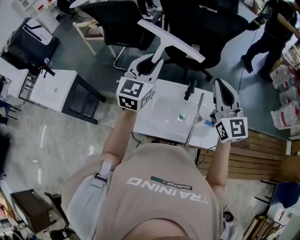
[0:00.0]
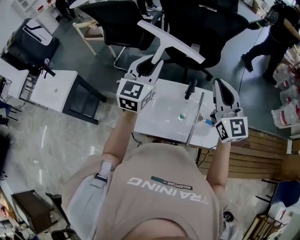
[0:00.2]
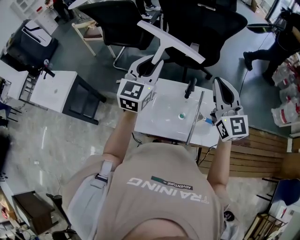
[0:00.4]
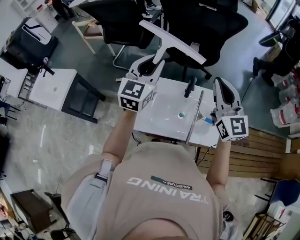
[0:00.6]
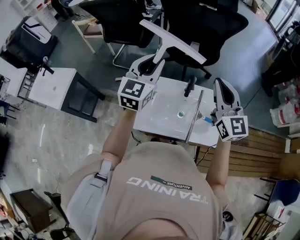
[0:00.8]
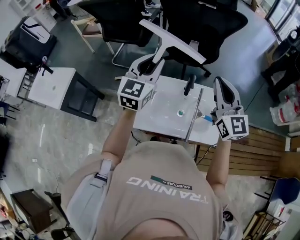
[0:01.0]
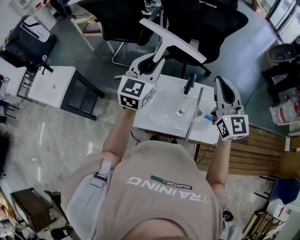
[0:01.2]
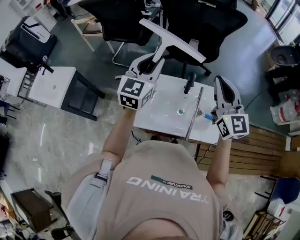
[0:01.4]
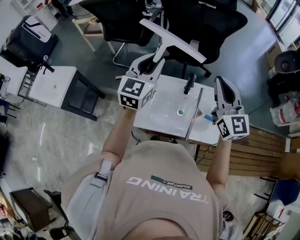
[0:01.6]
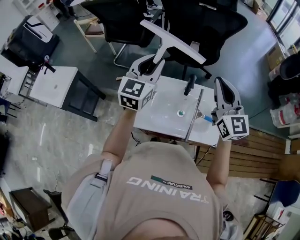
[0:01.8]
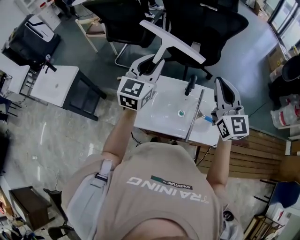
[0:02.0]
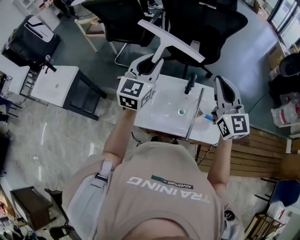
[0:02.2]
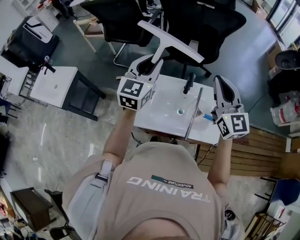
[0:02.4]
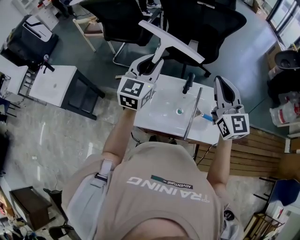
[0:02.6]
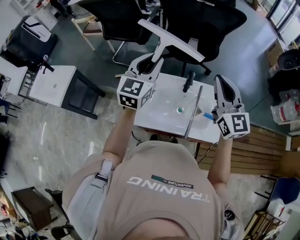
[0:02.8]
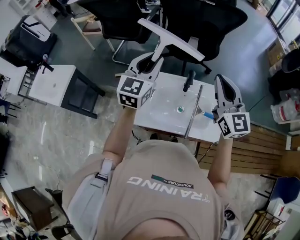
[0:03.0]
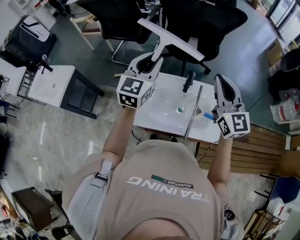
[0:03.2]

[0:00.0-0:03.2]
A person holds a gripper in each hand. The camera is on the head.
0:00.0 to 0:01.6: The grippers move only a little.
0:01.6 to 0:03.2: Neither gripper changes place.

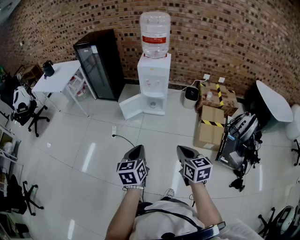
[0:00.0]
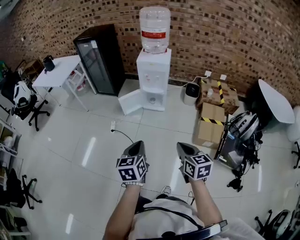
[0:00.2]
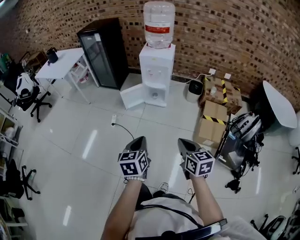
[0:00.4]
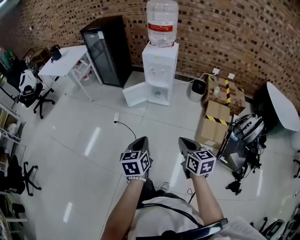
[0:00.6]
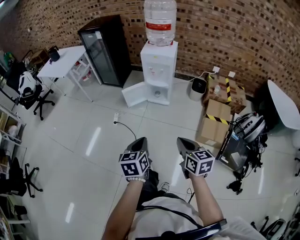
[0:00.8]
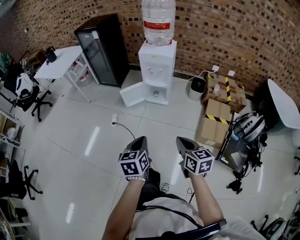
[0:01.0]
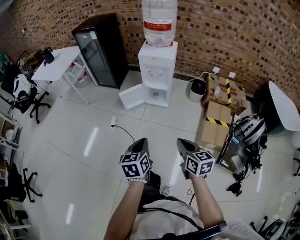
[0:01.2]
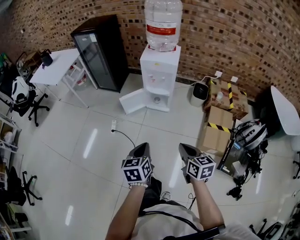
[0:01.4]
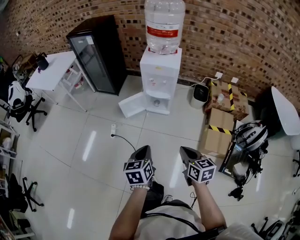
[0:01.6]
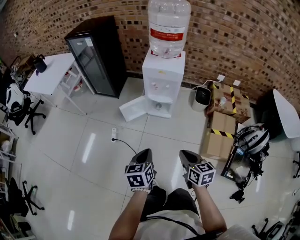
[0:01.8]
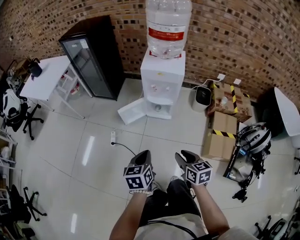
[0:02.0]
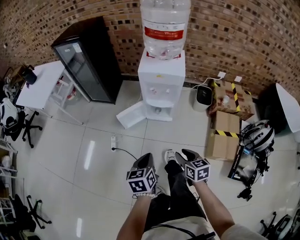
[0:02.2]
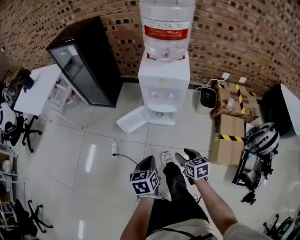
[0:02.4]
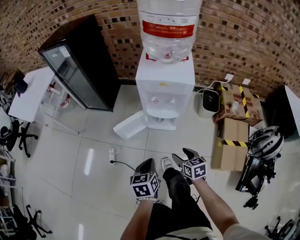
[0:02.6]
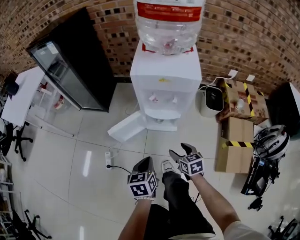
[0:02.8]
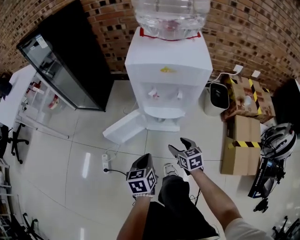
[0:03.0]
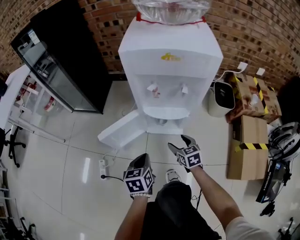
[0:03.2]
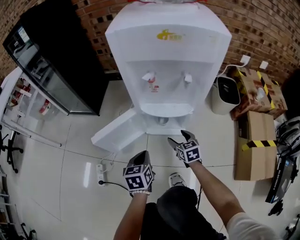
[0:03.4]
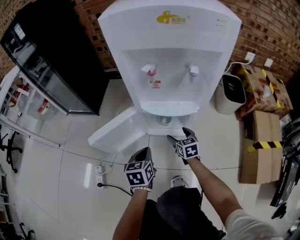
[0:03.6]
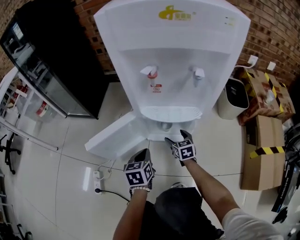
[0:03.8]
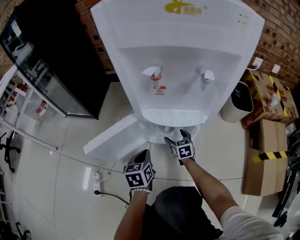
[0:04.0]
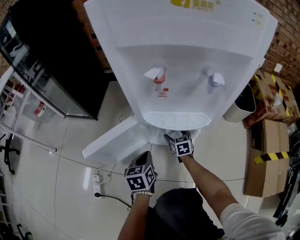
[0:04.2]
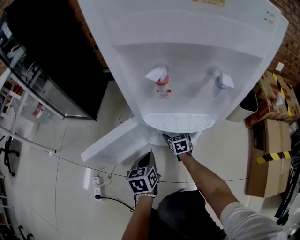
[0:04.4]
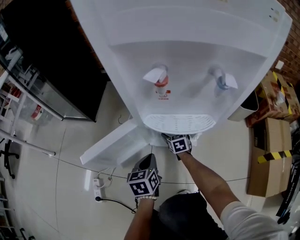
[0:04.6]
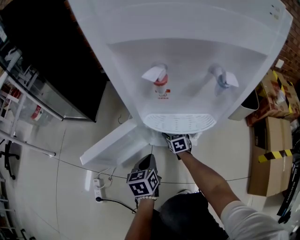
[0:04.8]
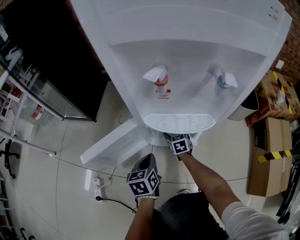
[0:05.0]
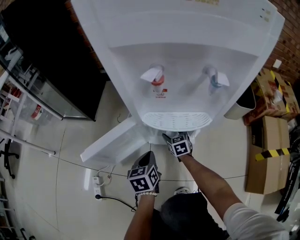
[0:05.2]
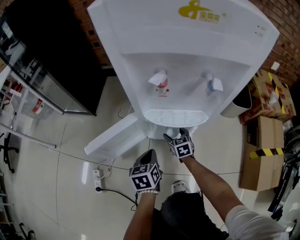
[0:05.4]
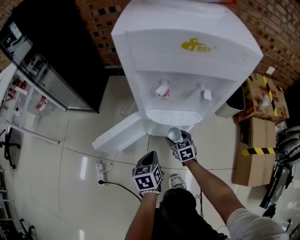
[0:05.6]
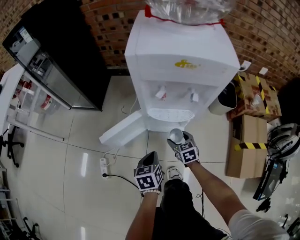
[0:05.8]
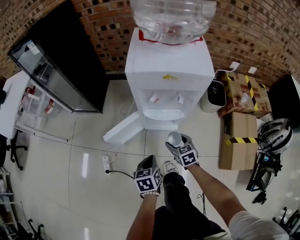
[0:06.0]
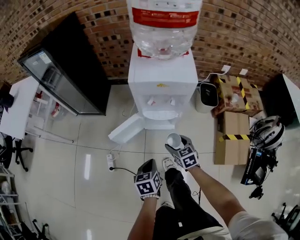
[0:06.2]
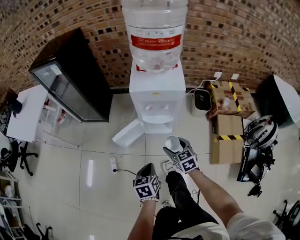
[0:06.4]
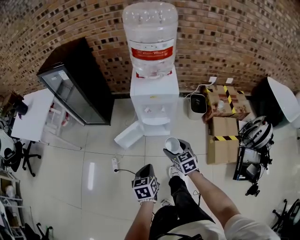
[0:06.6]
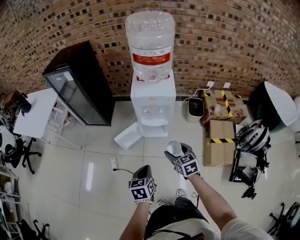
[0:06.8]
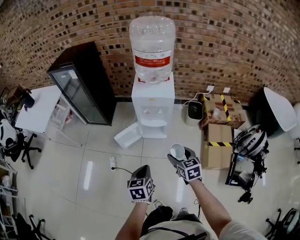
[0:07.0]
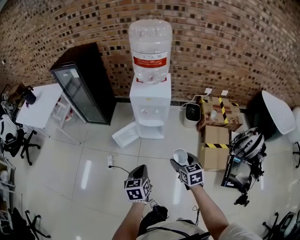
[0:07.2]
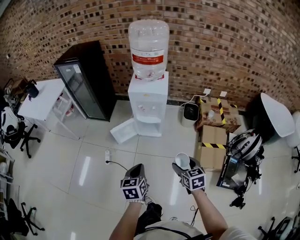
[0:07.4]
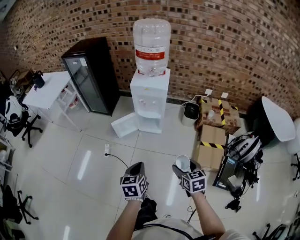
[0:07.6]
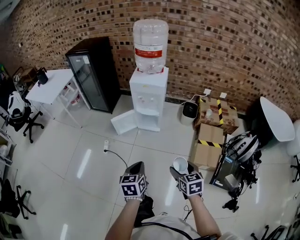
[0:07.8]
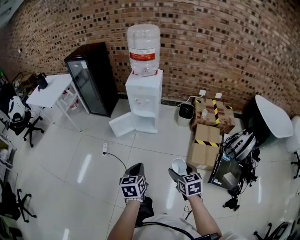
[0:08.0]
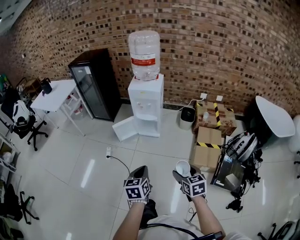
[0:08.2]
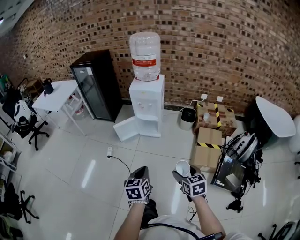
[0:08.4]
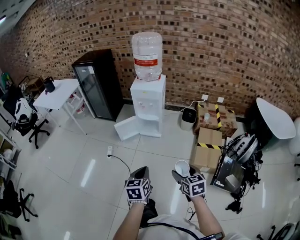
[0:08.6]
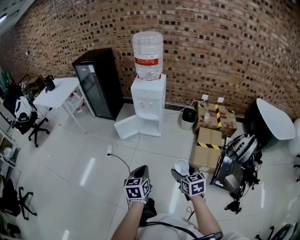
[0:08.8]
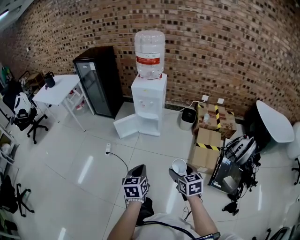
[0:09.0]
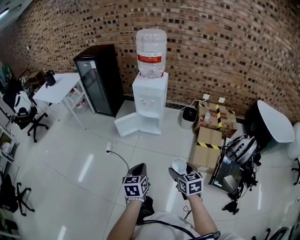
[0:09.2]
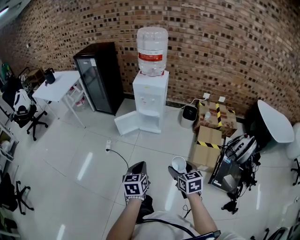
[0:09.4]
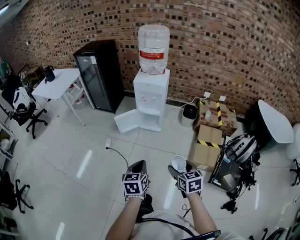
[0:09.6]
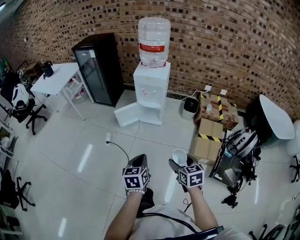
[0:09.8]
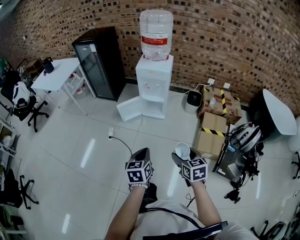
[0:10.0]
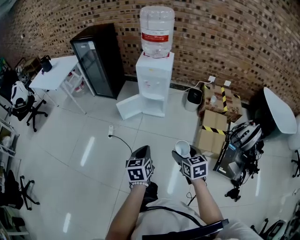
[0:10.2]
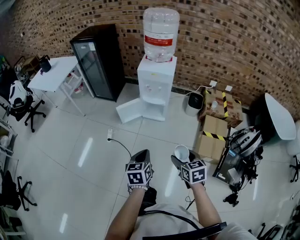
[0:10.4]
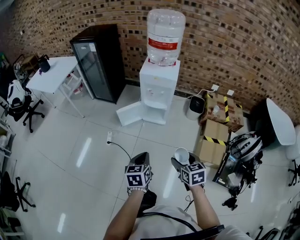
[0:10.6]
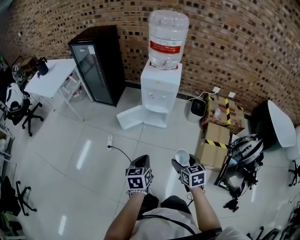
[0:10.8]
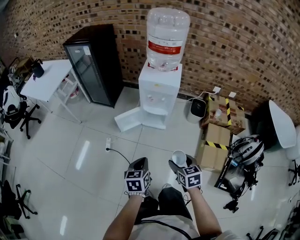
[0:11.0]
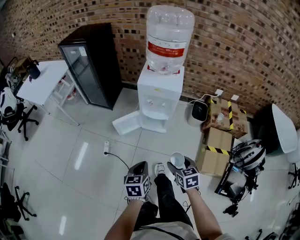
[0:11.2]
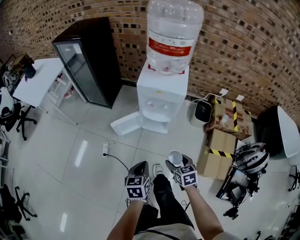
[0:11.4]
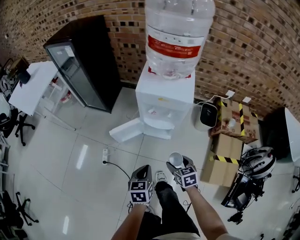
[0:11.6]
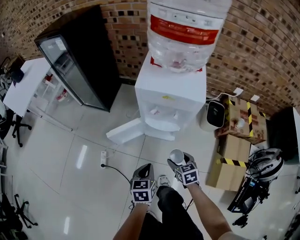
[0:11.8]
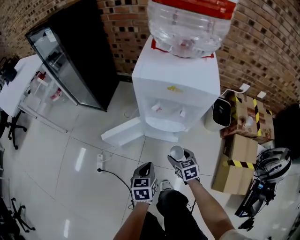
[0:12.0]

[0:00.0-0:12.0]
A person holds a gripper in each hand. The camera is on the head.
0:00.0 to 0:01.6: The grippers both shift forward and downward by roughly 20 cm.
0:01.6 to 0:03.0: Both grippers travel together downward and forward, some 50 cm. The right gripper opens.
0:03.0 to 0:04.4: The two grippers go approximately 35 cm downward and forward.
0:04.4 to 0:06.0: Both grippers move upward and backward, roughly 35 cm.
0:06.0 to 0:07.6: The left gripper travels upward and backward by roughly 50 cm. The right gripper heads backward and upward, covering some 60 cm.
0:07.6 to 0:09.0: Both grippers travel together backward, about 10 cm.
0:09.0 to 0:10.4: Both grippers travel together forward, roughly 10 cm.
0:10.4 to 0:12.0: The grippers both shift forward and downward by about 50 cm.

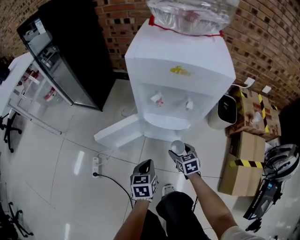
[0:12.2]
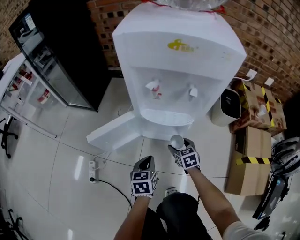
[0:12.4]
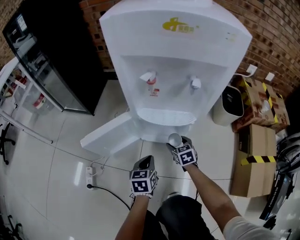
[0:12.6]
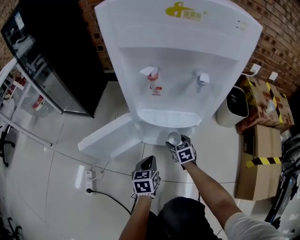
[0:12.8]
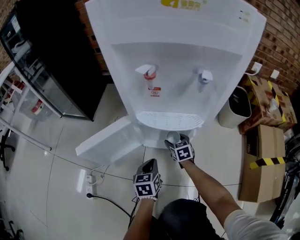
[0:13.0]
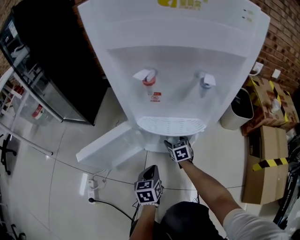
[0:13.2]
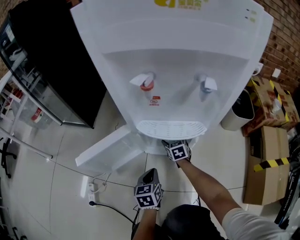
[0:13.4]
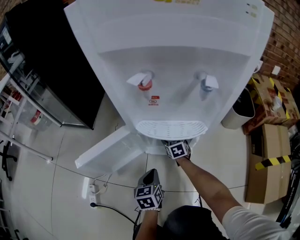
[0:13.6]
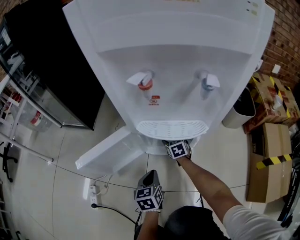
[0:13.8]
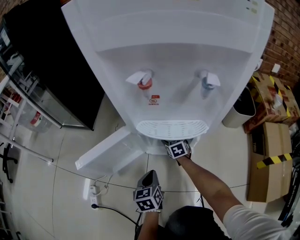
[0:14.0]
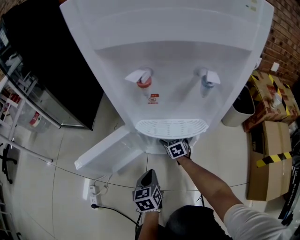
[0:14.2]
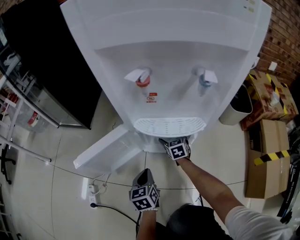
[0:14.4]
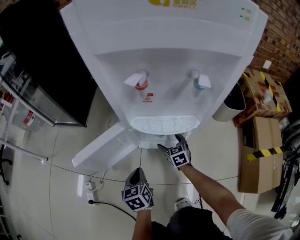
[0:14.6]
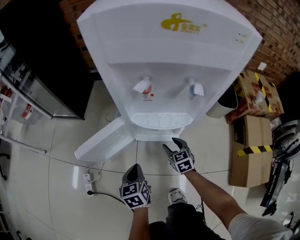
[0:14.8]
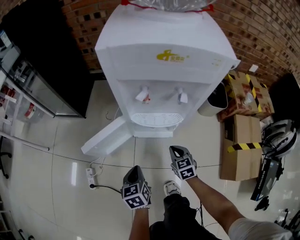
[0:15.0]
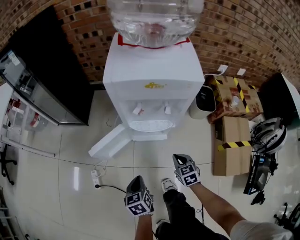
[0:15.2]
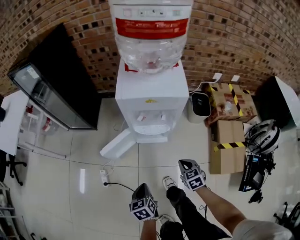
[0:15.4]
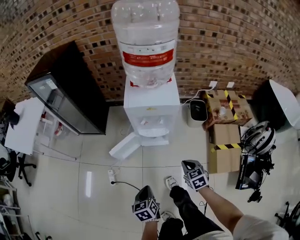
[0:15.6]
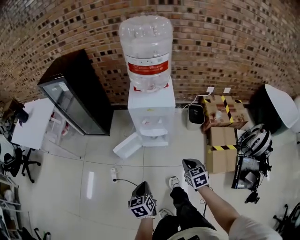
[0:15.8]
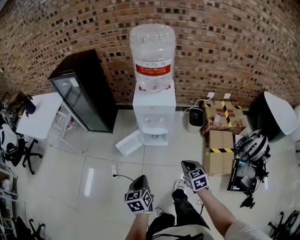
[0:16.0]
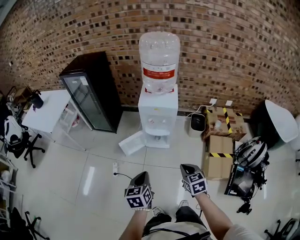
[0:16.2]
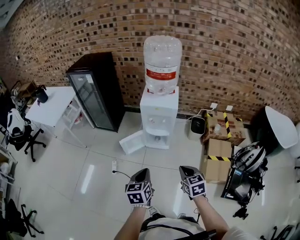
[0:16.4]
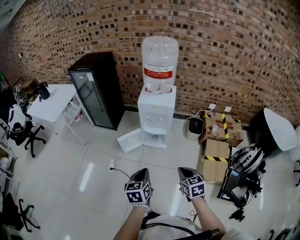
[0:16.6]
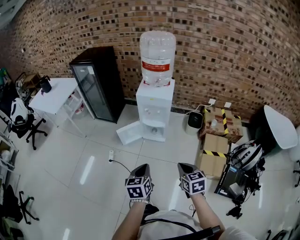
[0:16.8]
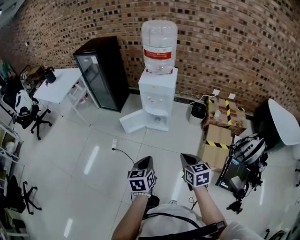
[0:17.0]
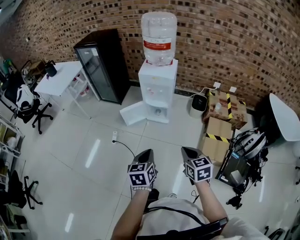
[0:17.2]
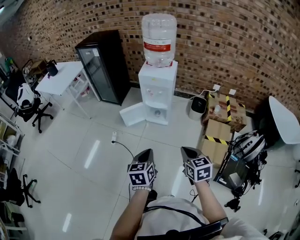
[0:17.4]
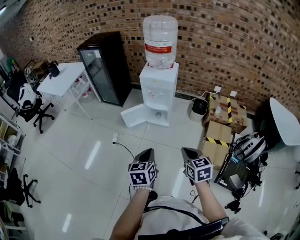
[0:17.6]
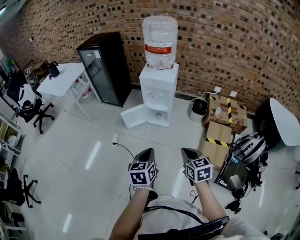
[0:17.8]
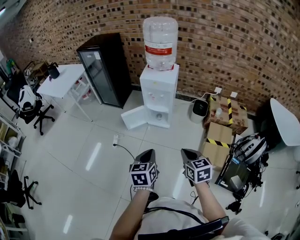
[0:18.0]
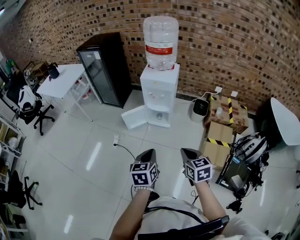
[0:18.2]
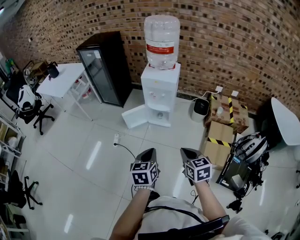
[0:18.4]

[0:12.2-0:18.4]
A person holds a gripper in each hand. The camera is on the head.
0:12.2 to 0:13.8: The two grippers go some 25 cm downward and forward.
0:13.8 to 0:15.4: Both grippers move upward and backward, about 50 cm. The right gripper closes up.
0:15.4 to 0:16.8: Both grippers move upward and backward, approximately 40 cm.

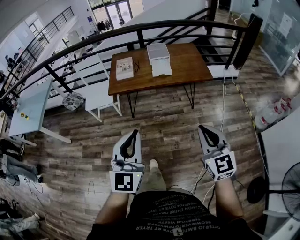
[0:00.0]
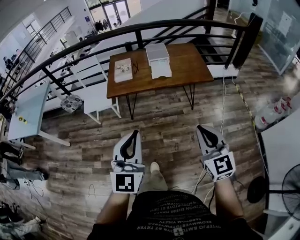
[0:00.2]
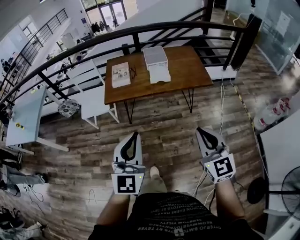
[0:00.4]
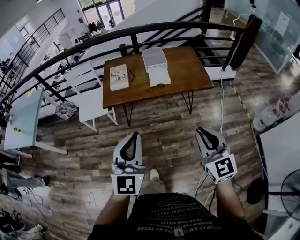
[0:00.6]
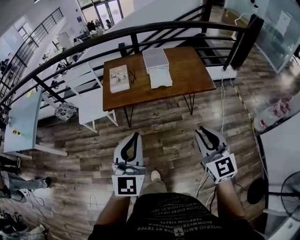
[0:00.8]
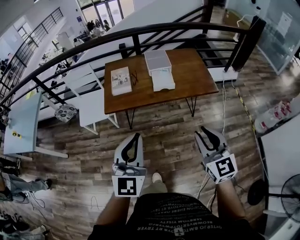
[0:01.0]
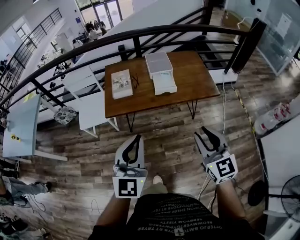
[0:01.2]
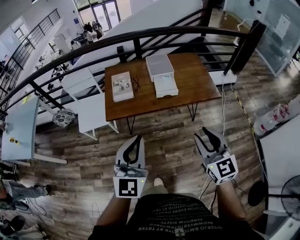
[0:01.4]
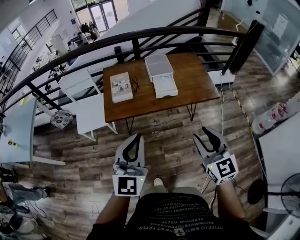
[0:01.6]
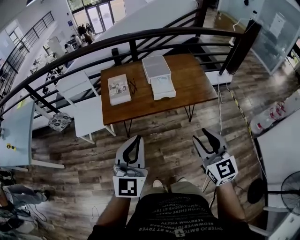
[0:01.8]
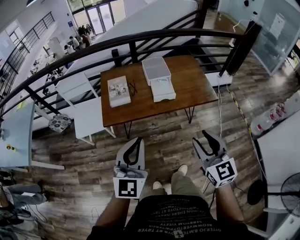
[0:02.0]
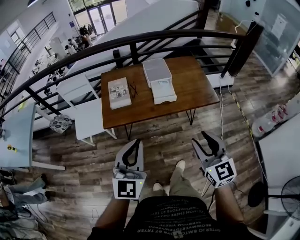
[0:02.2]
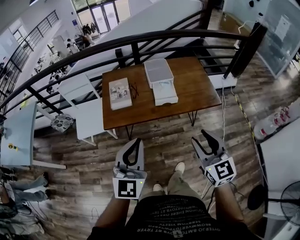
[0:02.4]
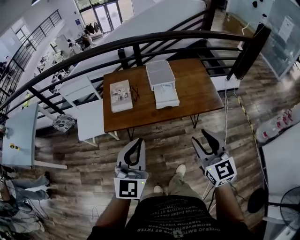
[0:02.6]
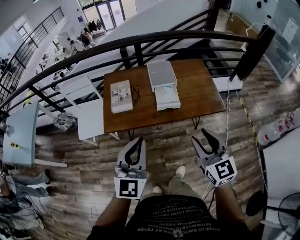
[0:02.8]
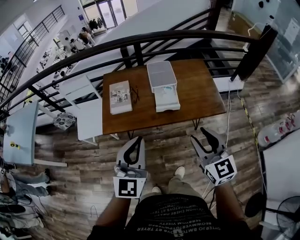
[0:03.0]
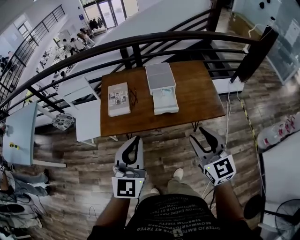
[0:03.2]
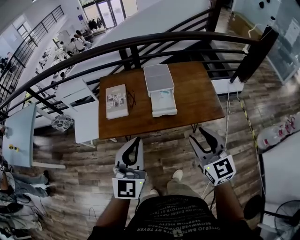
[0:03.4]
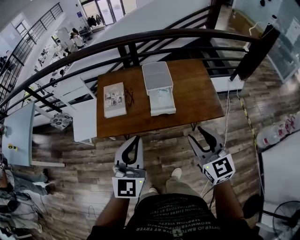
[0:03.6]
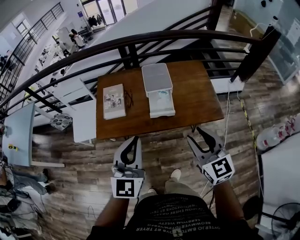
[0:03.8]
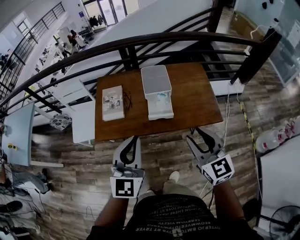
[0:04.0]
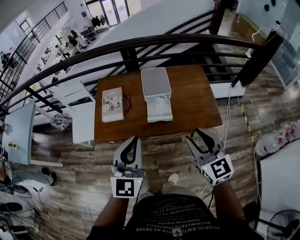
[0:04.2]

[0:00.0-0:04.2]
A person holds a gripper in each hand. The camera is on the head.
0:00.0 to 0:01.4: The grippers both shift forward by approximately 30 cm. The right gripper opens up.
0:01.4 to 0:02.8: Both grippers travel together forward, some 15 cm.
0:02.8 to 0:04.2: The two grippers go roughly 15 cm forward and to the right.
